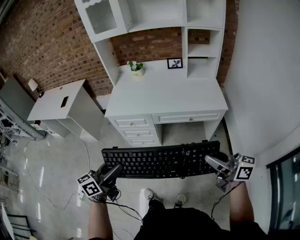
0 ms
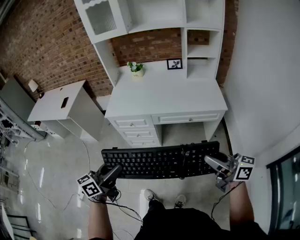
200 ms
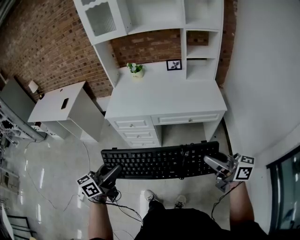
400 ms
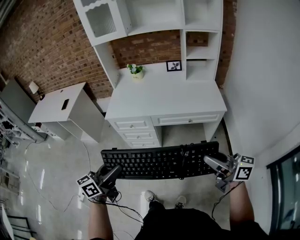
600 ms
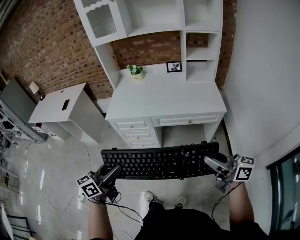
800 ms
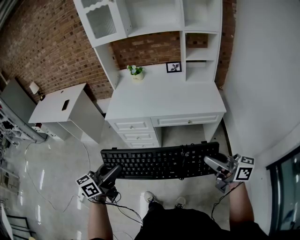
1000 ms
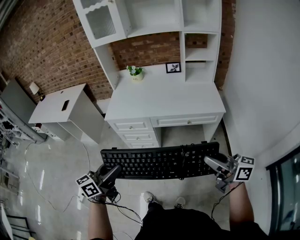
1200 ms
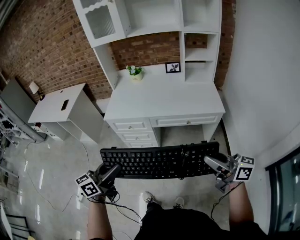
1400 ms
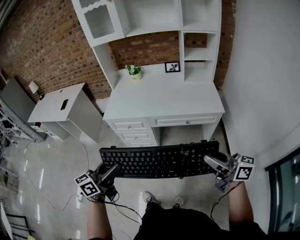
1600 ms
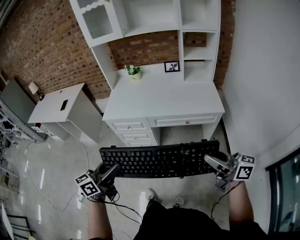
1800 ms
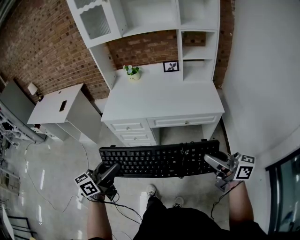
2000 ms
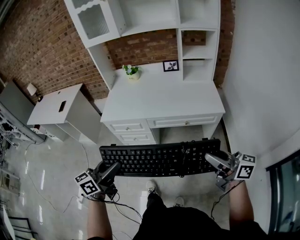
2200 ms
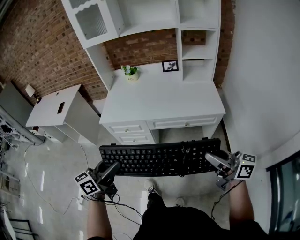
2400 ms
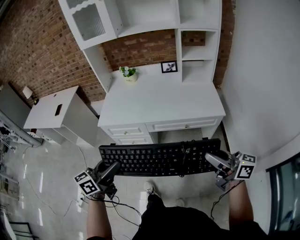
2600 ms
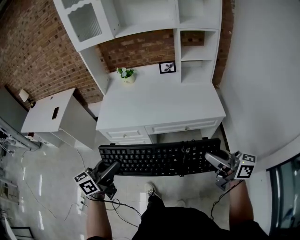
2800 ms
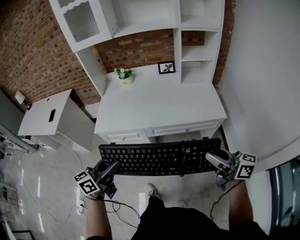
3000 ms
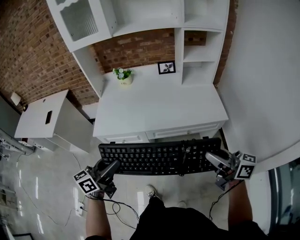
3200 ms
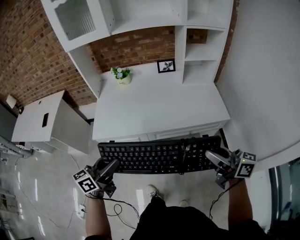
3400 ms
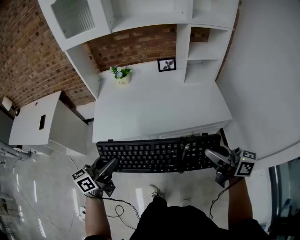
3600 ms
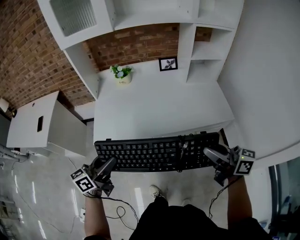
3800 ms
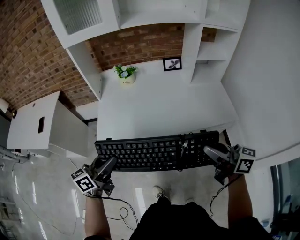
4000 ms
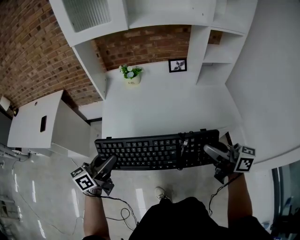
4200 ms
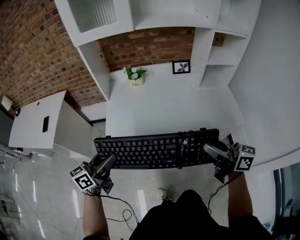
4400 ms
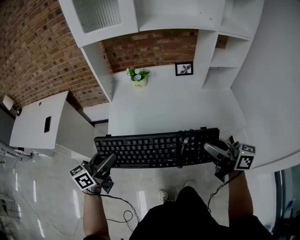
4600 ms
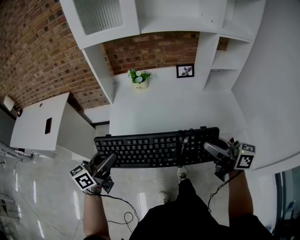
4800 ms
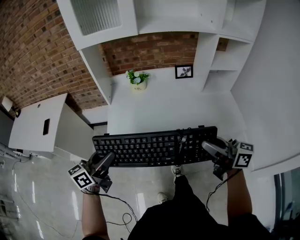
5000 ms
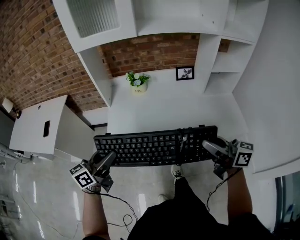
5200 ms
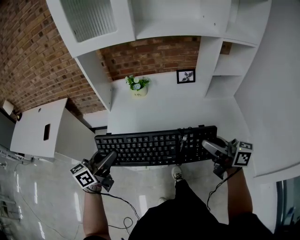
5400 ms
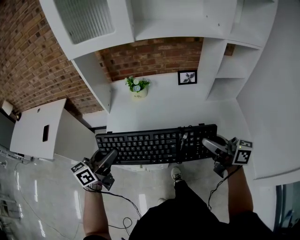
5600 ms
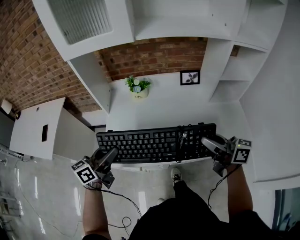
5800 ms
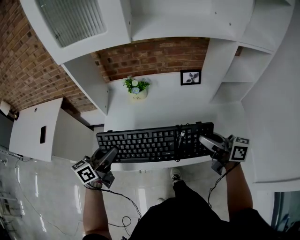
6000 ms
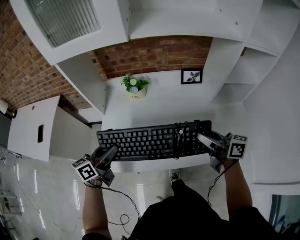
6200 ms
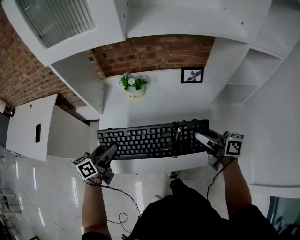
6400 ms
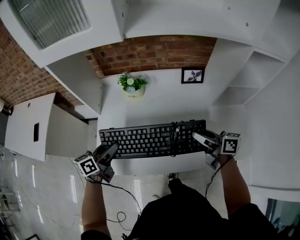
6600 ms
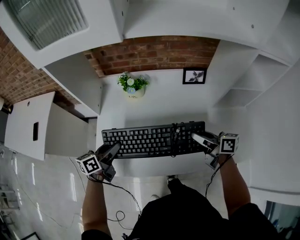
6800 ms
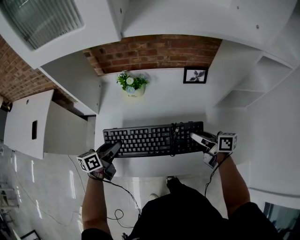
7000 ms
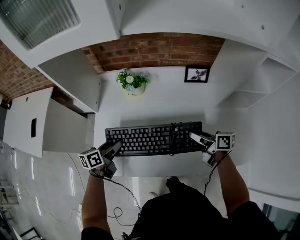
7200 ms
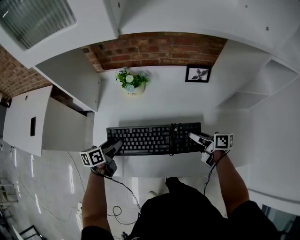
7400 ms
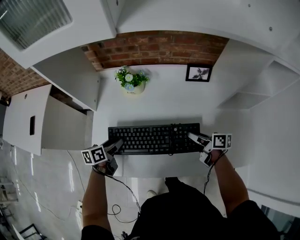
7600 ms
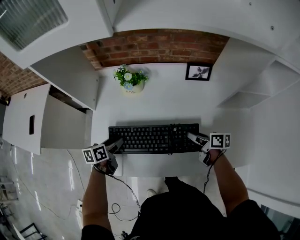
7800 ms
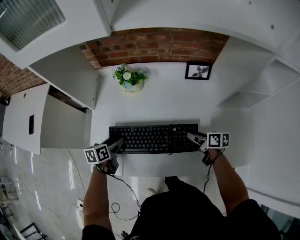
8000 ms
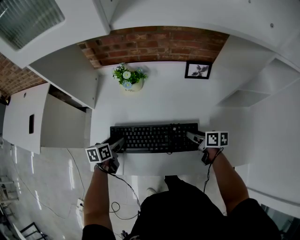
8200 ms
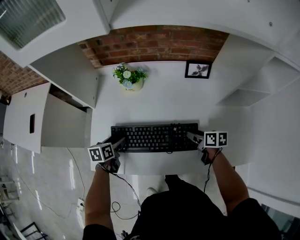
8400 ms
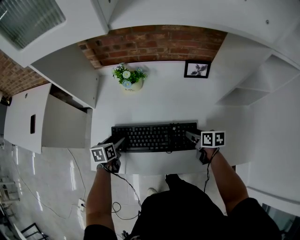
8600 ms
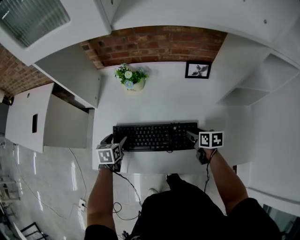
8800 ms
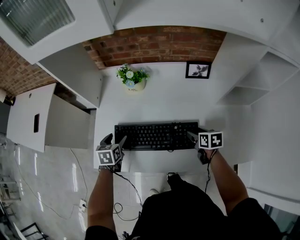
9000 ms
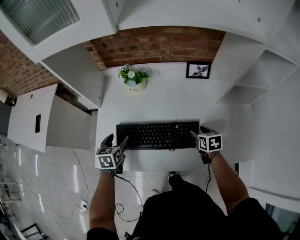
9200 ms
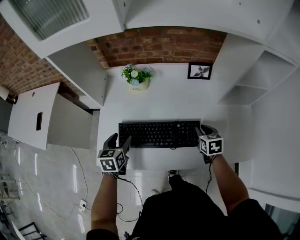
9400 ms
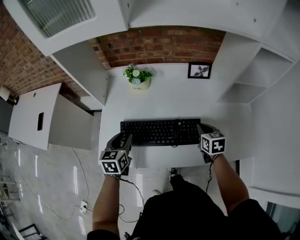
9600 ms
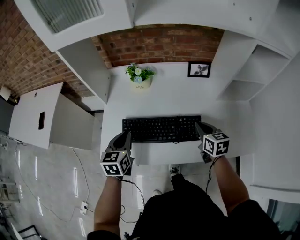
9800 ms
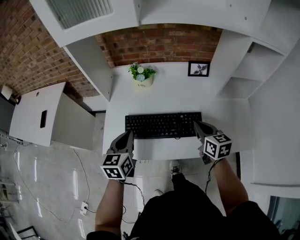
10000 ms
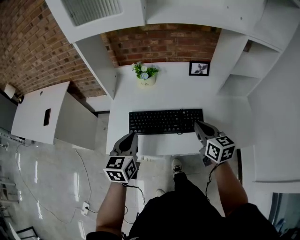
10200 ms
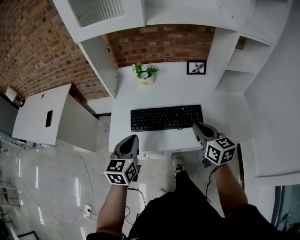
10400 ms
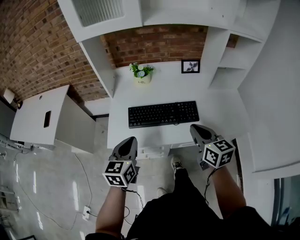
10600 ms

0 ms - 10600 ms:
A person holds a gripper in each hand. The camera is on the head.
0 ms - 1600 ms: The grippers move only a little.
1600 ms - 3000 ms: The grippers both shift forward by some 15 cm.
3000 ms - 4600 ms: The grippers both shift to the left and forward by approximately 25 cm.
4600 ms - 6000 ms: The two grippers go roughly 20 cm forward.
6000 ms - 7600 ms: The grippers both shift downward and forward by some 25 cm. The right gripper turns by some 30 degrees. Meanwhile the left gripper turns by some 30 degrees.
7600 ms - 9000 ms: The right gripper changes place by some 5 cm, and rotates some 40 degrees. Meanwhile the left gripper swivels approximately 30 degrees.
9000 ms - 10600 ms: The left gripper shifts about 30 cm backward and upward, changes its angle by about 30 degrees, and closes up, while the right gripper heads upward, backward and to the left, covering roughly 35 cm, points its fingers some 30 degrees further upward, and closes.

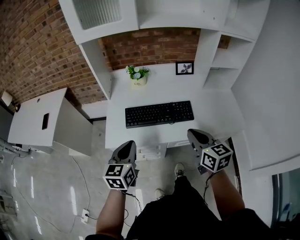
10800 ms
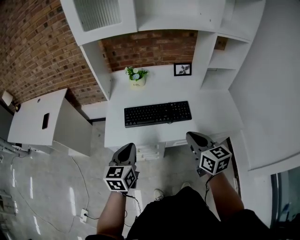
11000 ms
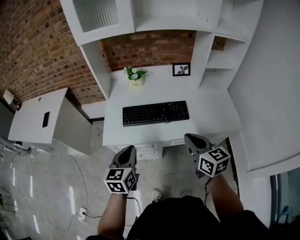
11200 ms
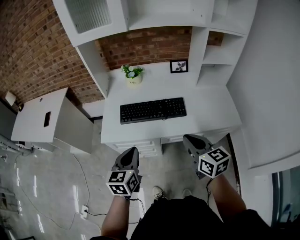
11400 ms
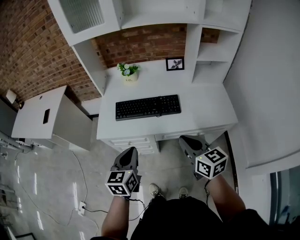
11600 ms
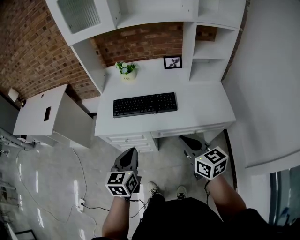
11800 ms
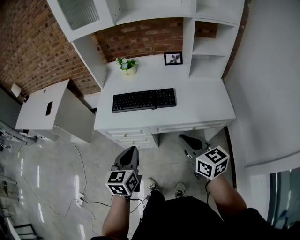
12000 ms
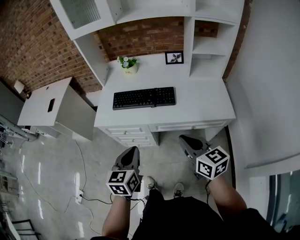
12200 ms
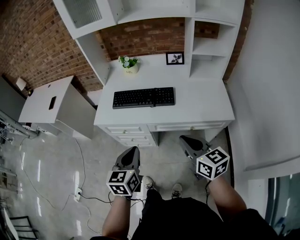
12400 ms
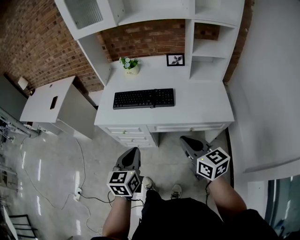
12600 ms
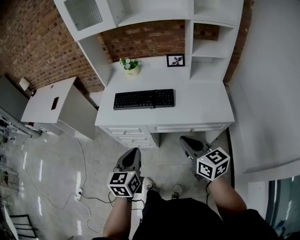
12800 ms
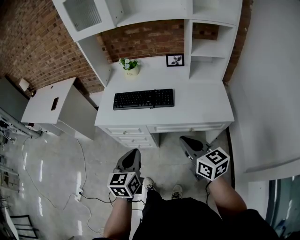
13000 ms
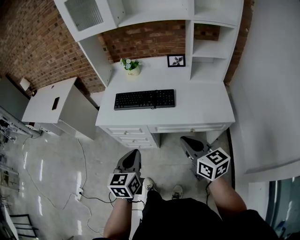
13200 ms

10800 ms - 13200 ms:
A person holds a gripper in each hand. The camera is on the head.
10800 ms - 12000 ms: The two grippers go approximately 20 cm backward and to the right.
12000 ms - 13200 ms: The left gripper moves about 5 cm.

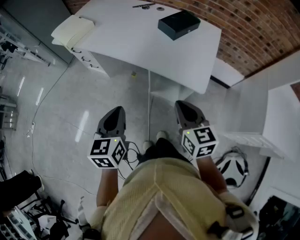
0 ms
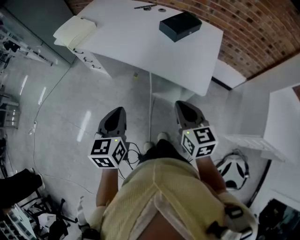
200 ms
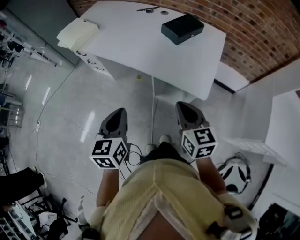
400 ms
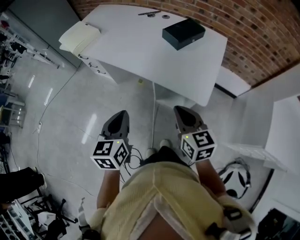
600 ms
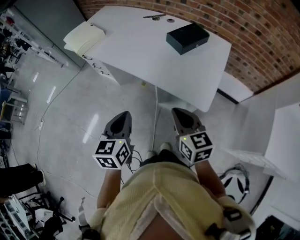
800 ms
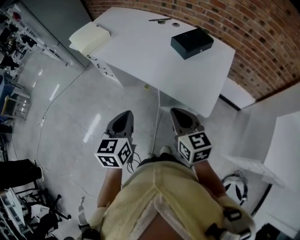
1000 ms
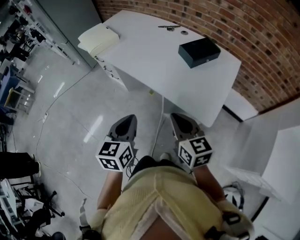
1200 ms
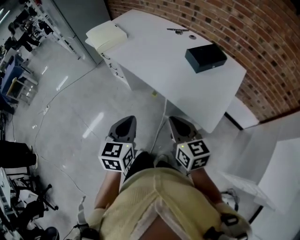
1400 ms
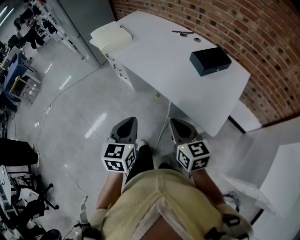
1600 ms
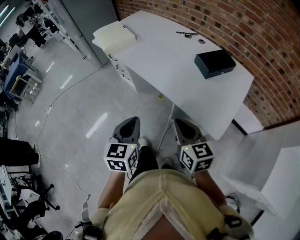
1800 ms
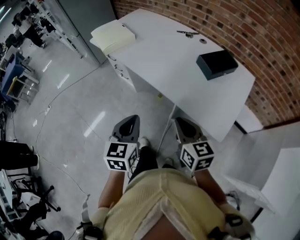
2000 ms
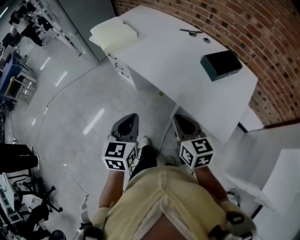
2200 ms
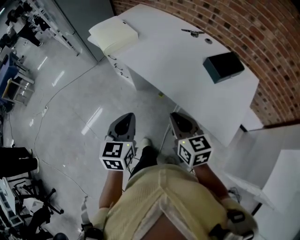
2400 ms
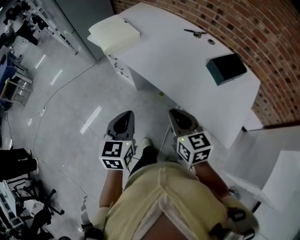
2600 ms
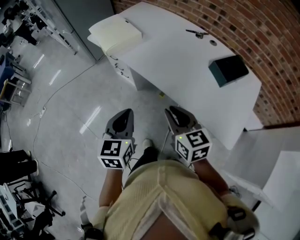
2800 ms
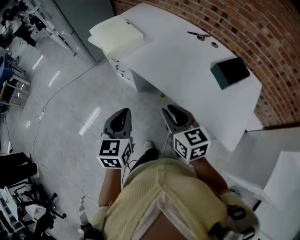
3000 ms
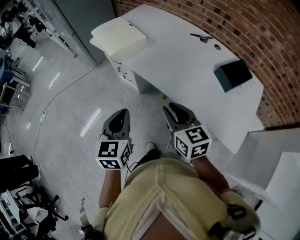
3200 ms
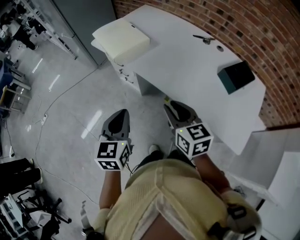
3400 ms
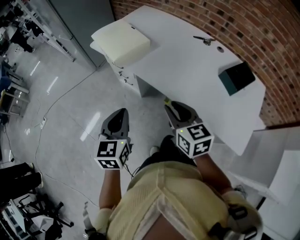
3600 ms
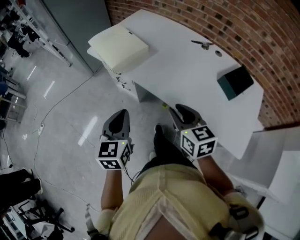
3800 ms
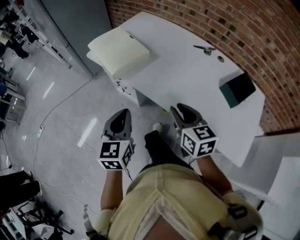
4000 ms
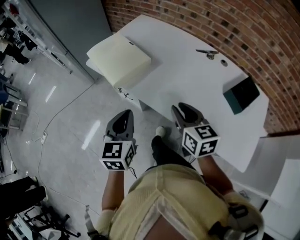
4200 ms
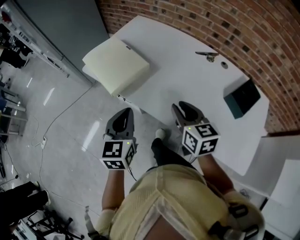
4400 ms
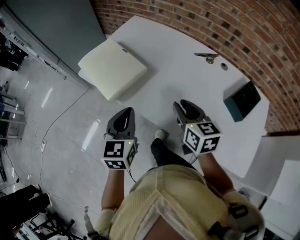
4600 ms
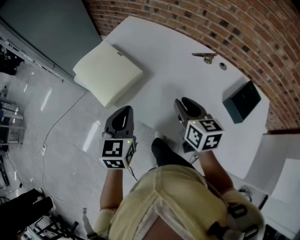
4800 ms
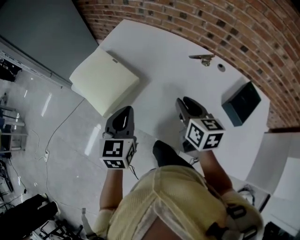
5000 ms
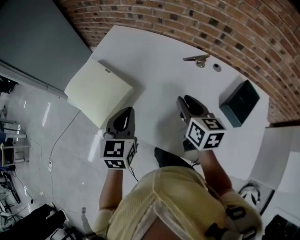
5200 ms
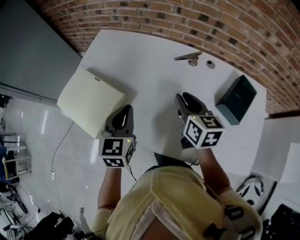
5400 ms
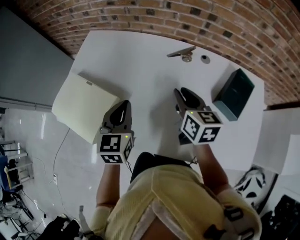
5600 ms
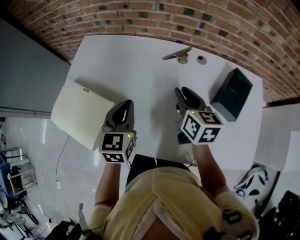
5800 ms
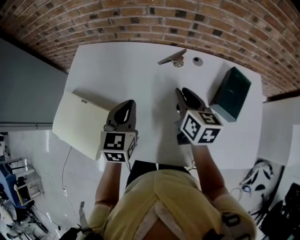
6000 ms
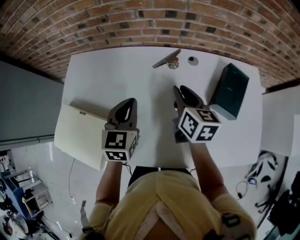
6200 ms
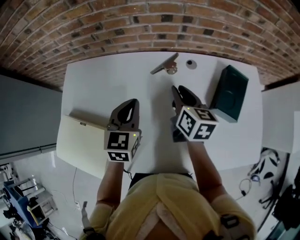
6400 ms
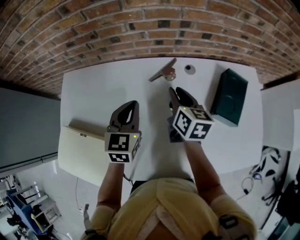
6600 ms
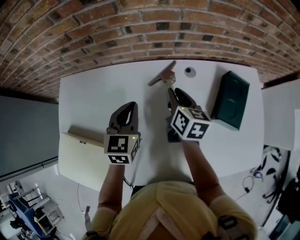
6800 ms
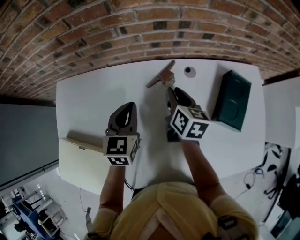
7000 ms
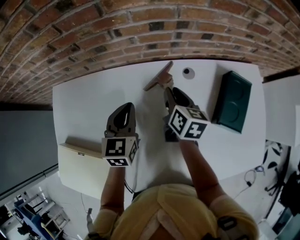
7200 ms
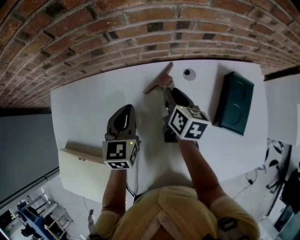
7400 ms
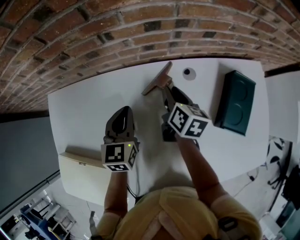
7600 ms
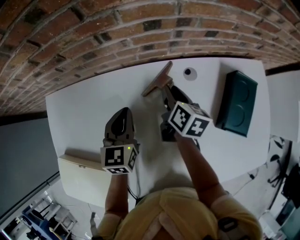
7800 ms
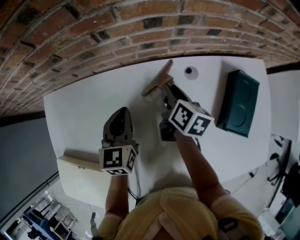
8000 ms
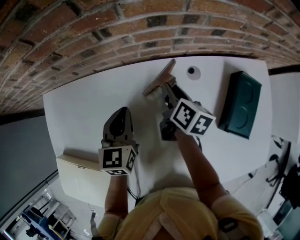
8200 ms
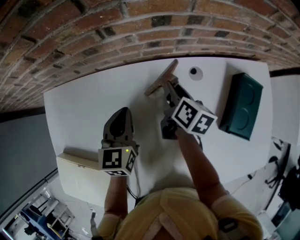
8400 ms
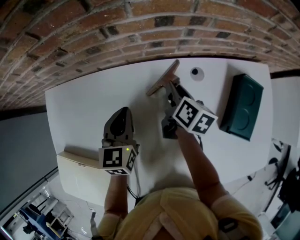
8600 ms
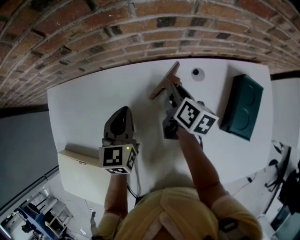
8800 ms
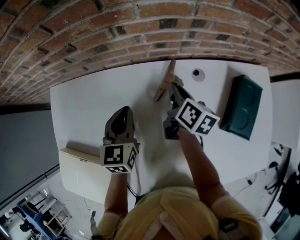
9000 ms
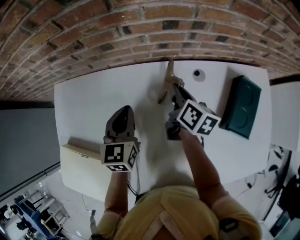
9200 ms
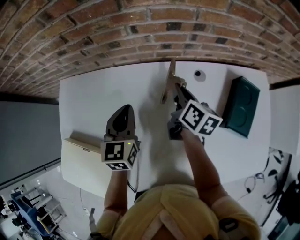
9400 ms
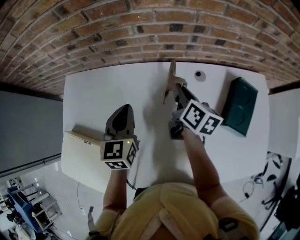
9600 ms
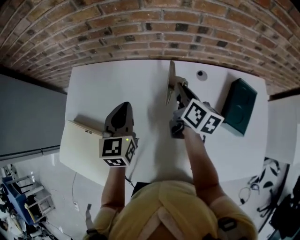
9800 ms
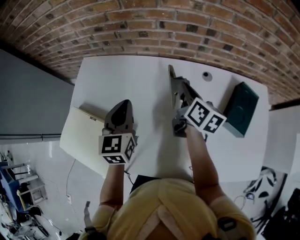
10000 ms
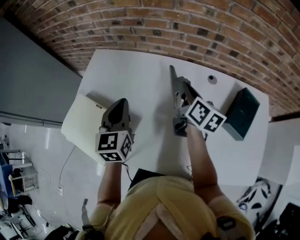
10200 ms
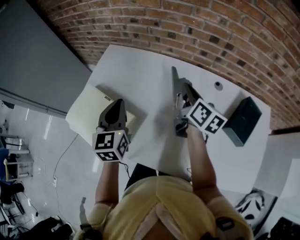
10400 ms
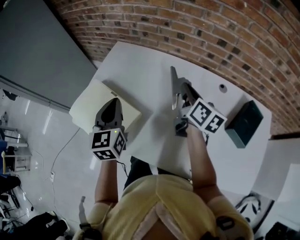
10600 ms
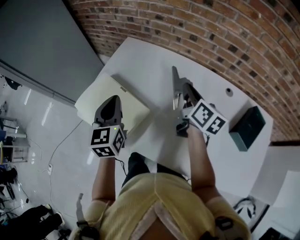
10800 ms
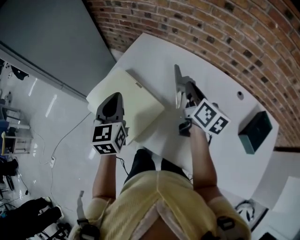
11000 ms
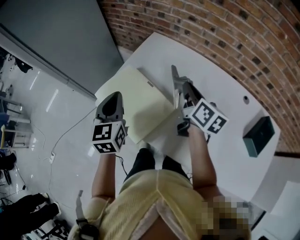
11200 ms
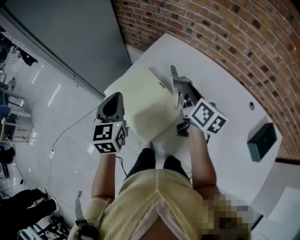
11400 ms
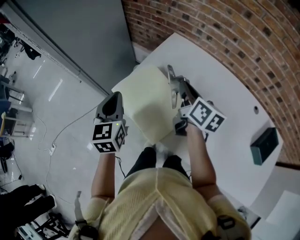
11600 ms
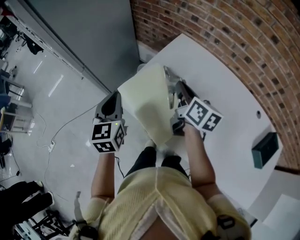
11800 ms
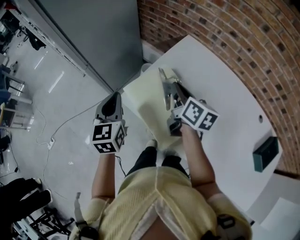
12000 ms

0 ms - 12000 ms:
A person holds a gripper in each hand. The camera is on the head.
0 ms - 1600 ms: The right gripper moves forward, about 10 cm. The left gripper changes place by roughly 5 cm.
1600 ms - 3000 ms: Both grippers travel together forward and to the left, about 25 cm.
3000 ms - 4400 ms: Both grippers move forward, some 25 cm.
4400 ms - 6000 ms: The left gripper shifts by about 30 cm, and rotates about 30 degrees. Meanwhile the right gripper moves some 25 cm, and changes its angle by approximately 40 degrees.
6000 ms - 7600 ms: The left gripper moves forward, roughly 20 cm; the right gripper travels forward and downward by some 20 cm, and rotates some 30 degrees.
7600 ms - 9000 ms: The grippers move only a little.
9000 ms - 10400 ms: The right gripper goes roughly 20 cm upward, backward and to the left, and swivels roughly 30 degrees. The left gripper travels backward, to the left and upward by some 25 cm, and changes its angle by approximately 30 degrees.
10400 ms - 12000 ms: The right gripper ends up some 40 cm from where it was, and changes its angle by approximately 30 degrees. The left gripper shifts by roughly 35 cm, and turns by about 20 degrees.
